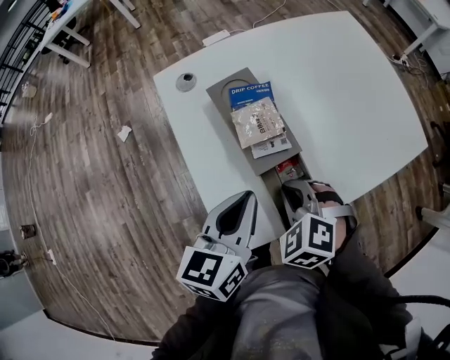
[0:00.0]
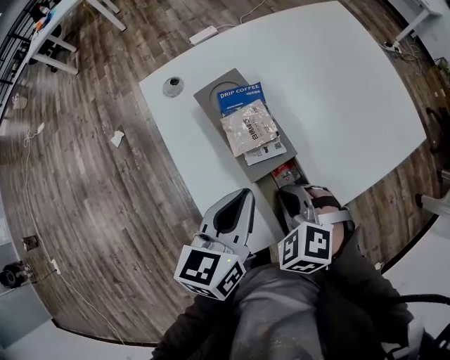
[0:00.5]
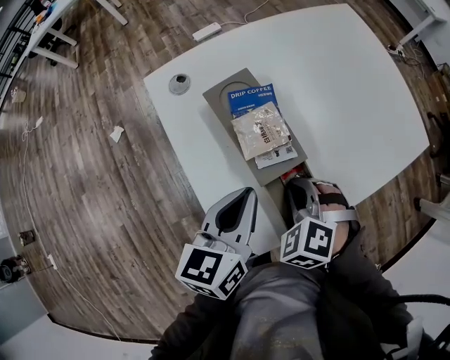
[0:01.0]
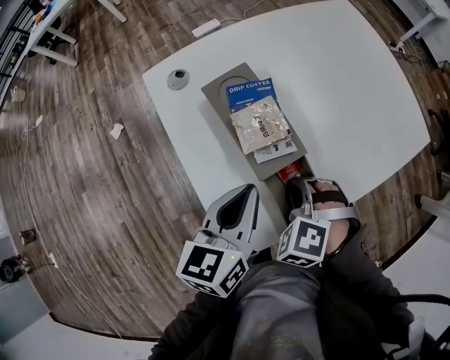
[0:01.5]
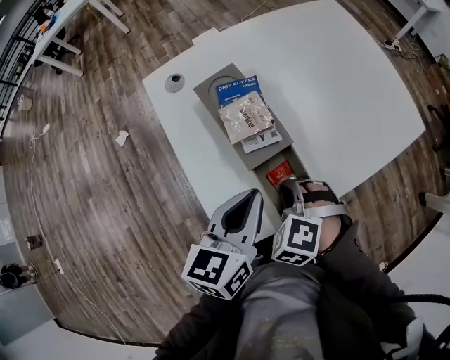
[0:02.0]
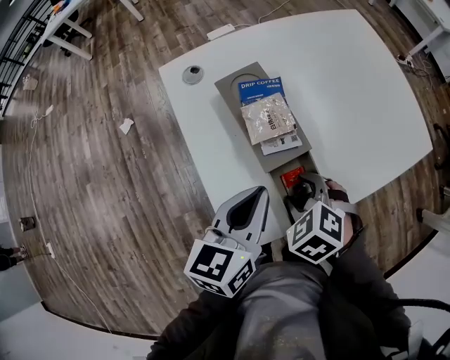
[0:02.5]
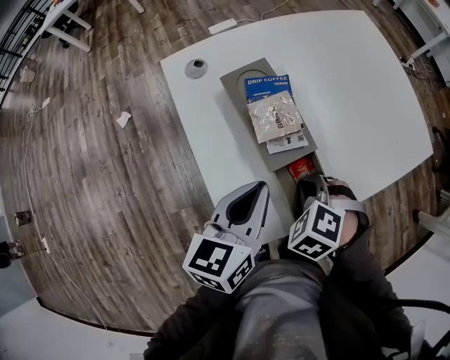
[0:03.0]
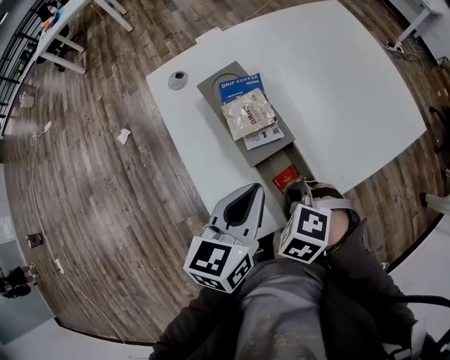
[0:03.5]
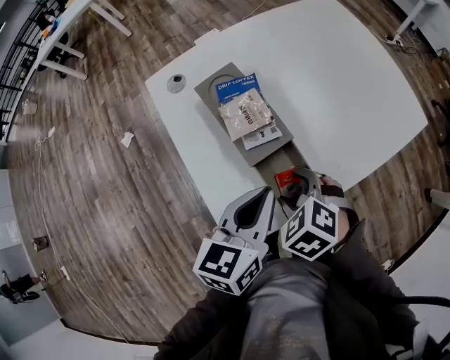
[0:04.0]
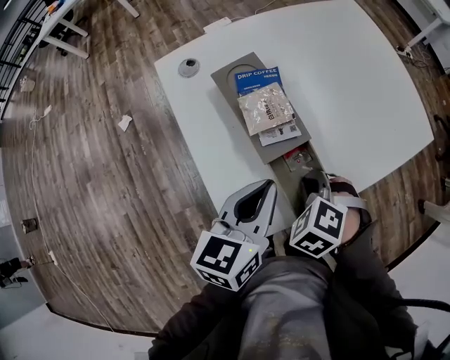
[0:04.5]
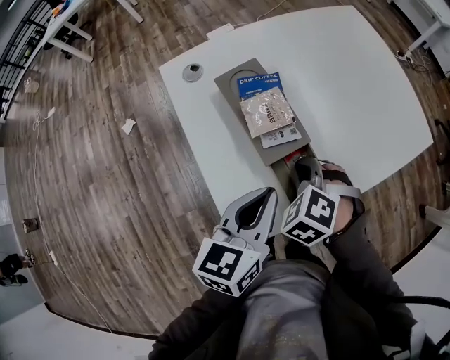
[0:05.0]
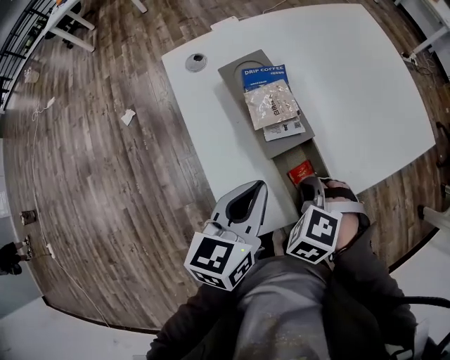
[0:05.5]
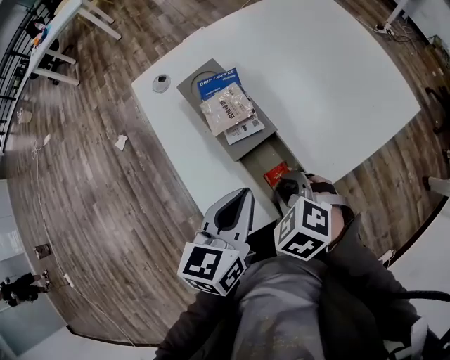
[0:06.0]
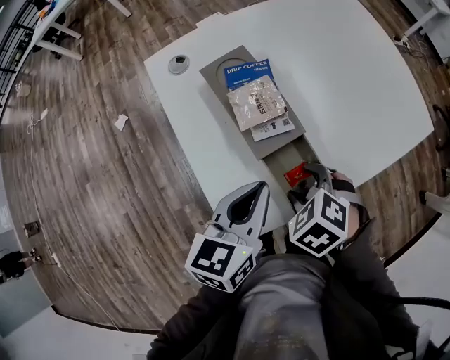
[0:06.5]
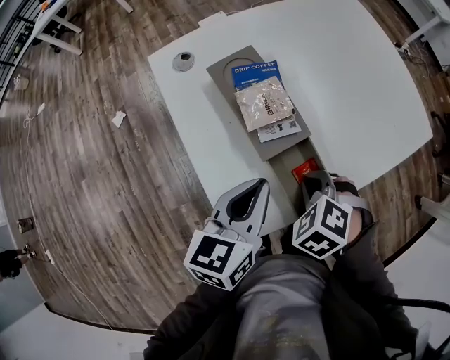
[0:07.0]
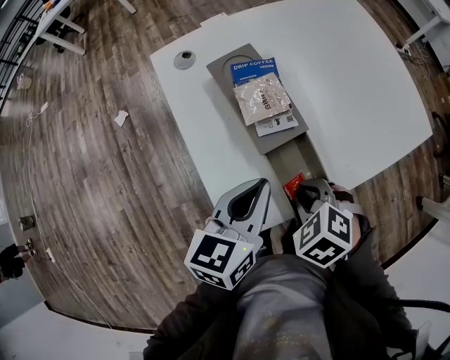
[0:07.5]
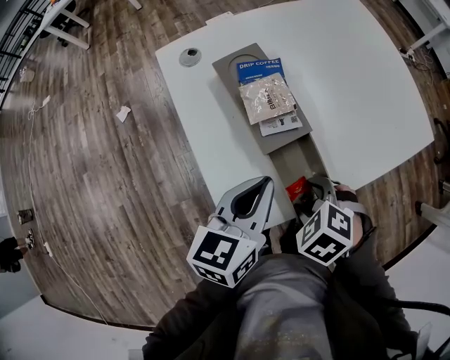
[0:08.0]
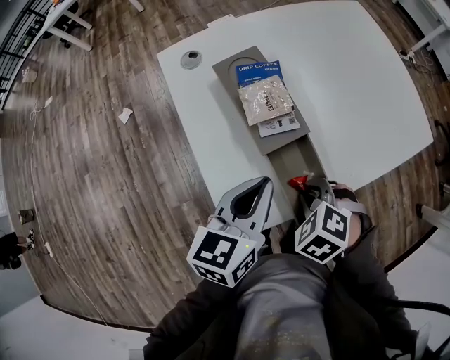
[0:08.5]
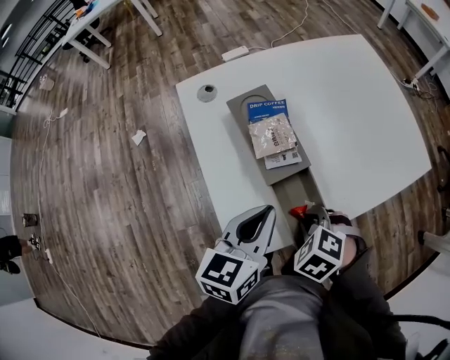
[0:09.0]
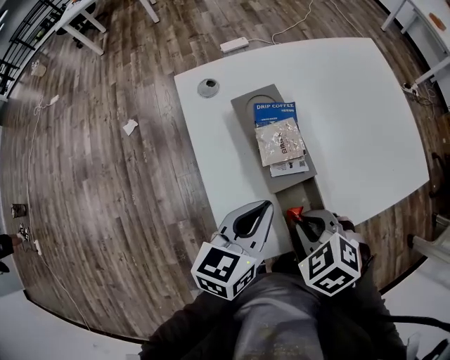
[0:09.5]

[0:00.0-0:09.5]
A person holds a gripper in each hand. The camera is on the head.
0:00.0 to 0:02.0: There are only small adjustments of the grippers.
0:02.0 to 0:04.0: The right gripper changes its angle by about 20 degrees, and opens up.
0:04.0 to 0:05.5: The left gripper is displaced to the left by some 5 cm. The right gripper rotates approximately 20 degrees, and closes up.
0:05.5 to 0:07.5: The right gripper opens, then closes again.
0:07.5 to 0:09.5: The right gripper changes place by some 5 cm, and opens, then closes again.

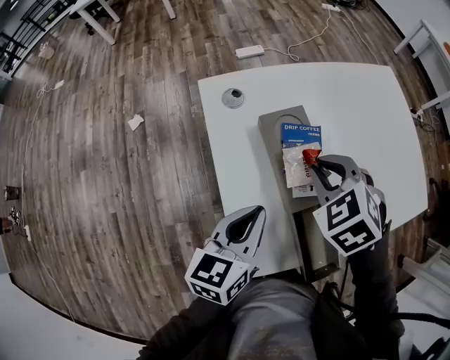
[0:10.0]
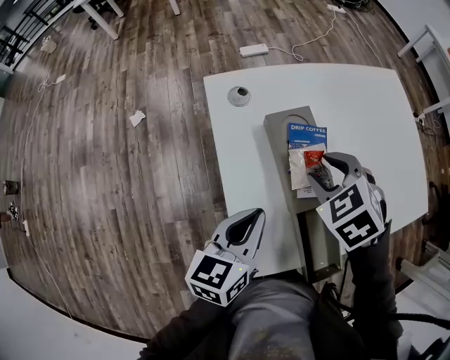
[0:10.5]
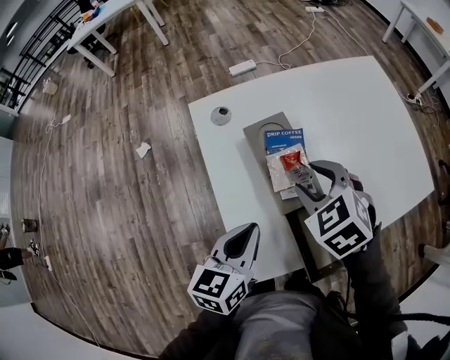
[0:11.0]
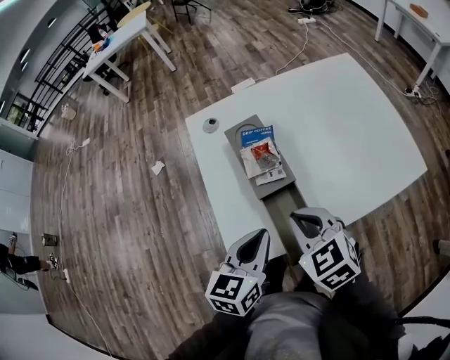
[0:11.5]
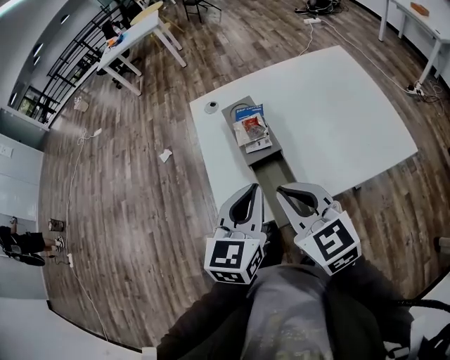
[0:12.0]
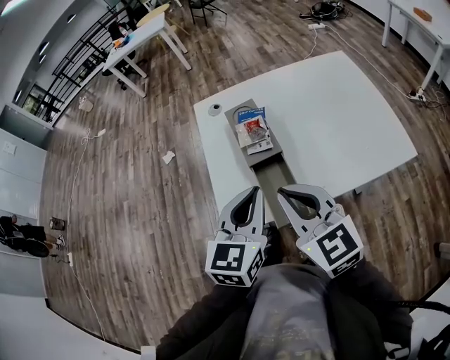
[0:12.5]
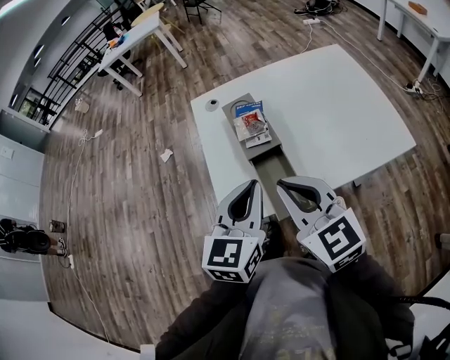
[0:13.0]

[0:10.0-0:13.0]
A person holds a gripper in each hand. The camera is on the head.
0:10.0 to 0:11.5: The left gripper shifts approximately 15 cm backward and to the right. Meanwhile the right gripper shifts approximately 15 cm backward, turns by approximately 30 degrees, and opens and closes again.
0:11.5 to 0:13.0: The left gripper shifts roughly 10 cm upward, and swivels about 20 degrees. The right gripper goes some 15 cm upward and backward, and rotates roughly 30 degrees.

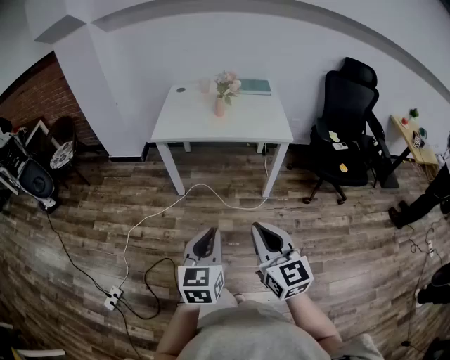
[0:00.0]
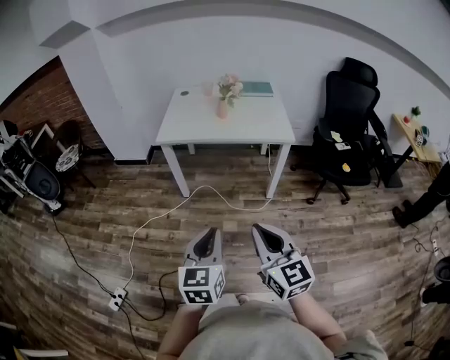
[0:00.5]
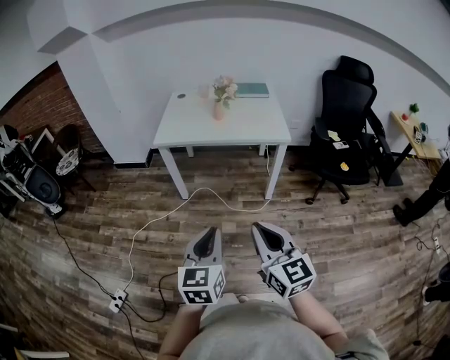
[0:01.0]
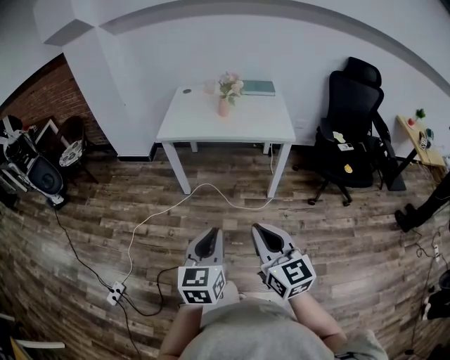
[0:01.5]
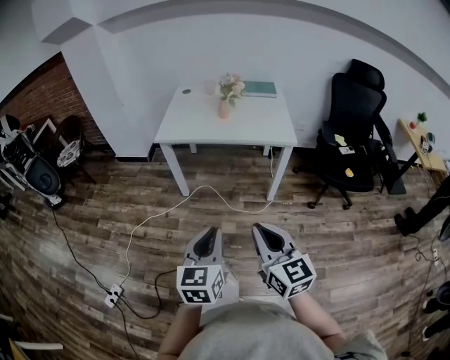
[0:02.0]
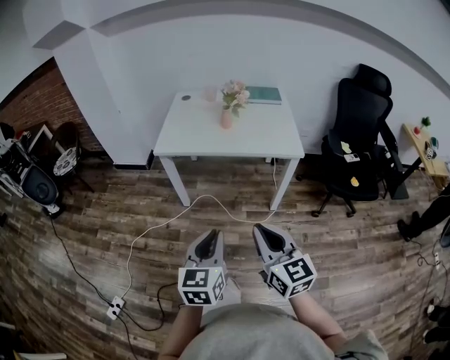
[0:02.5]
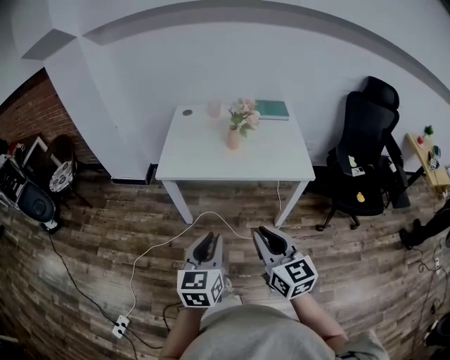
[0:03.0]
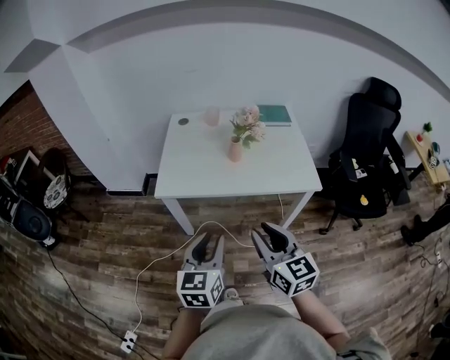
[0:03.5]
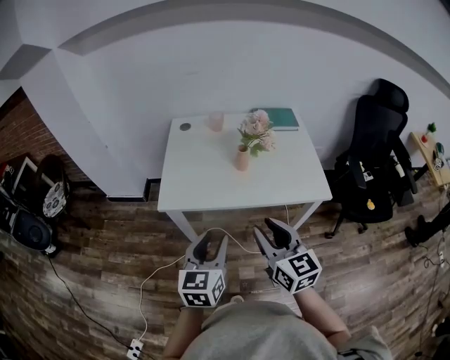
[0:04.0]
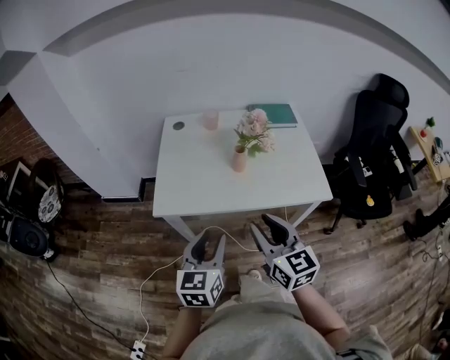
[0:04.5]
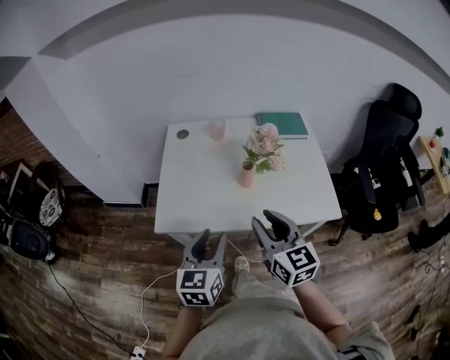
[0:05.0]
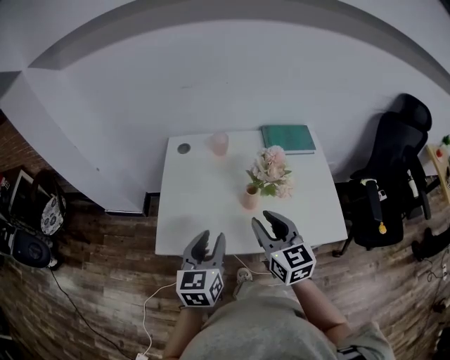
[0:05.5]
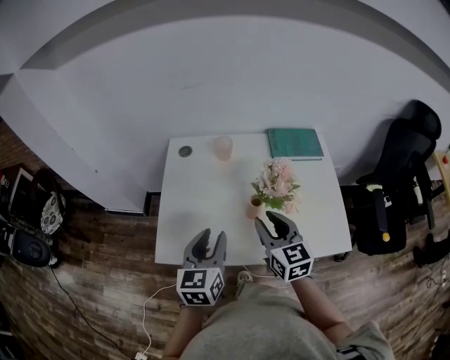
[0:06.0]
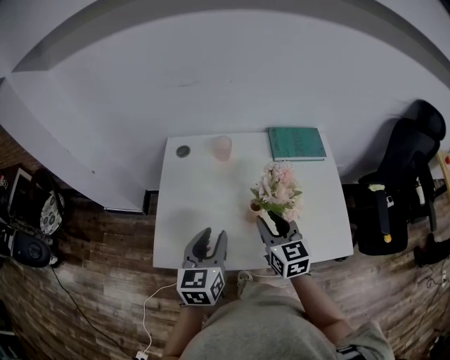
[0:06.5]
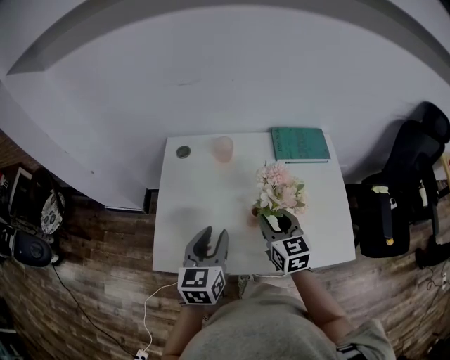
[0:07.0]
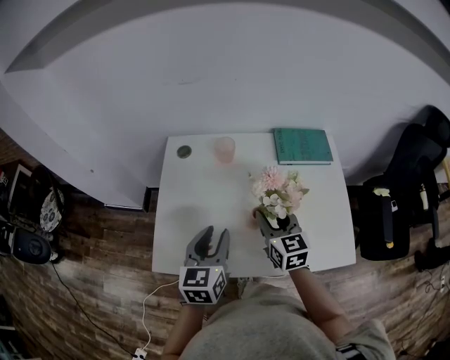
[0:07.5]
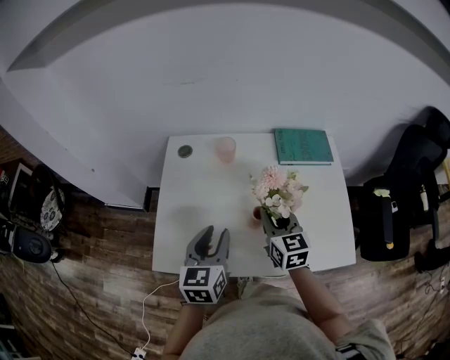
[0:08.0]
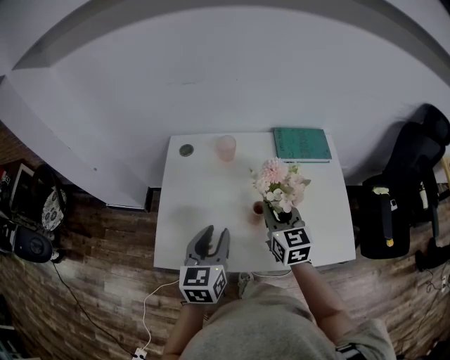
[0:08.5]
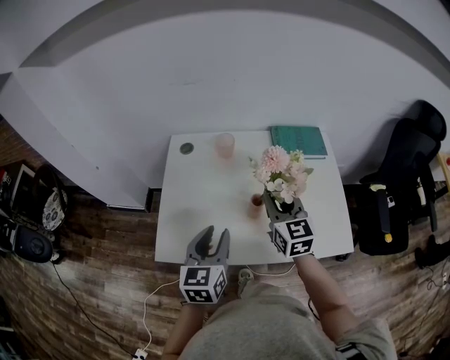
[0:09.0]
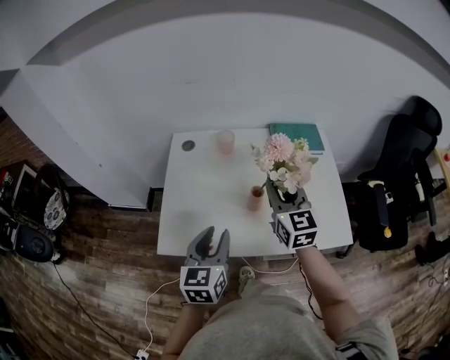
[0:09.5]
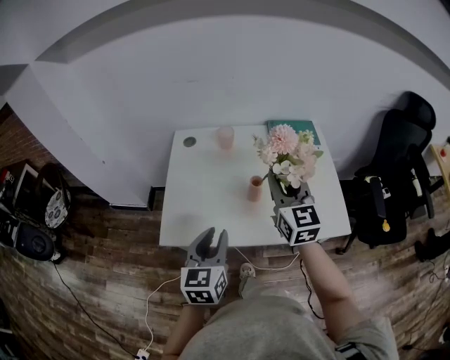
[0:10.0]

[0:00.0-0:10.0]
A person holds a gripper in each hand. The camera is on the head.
0:00.0 to 0:02.0: The grippers stay close to where they were, moving slightly.
0:02.0 to 0:04.0: Both grippers are carried forward, some 40 cm. The right gripper opens its fingers, while the left gripper opens its fingers.
0:04.0 to 0:06.0: Both grippers travel together forward, roughly 30 cm.
0:06.0 to 0:08.0: The grippers both shift forward by some 5 cm.
0:08.0 to 0:10.0: The right gripper shifts roughly 15 cm upward and backward, while the left gripper shifts some 15 cm backward.

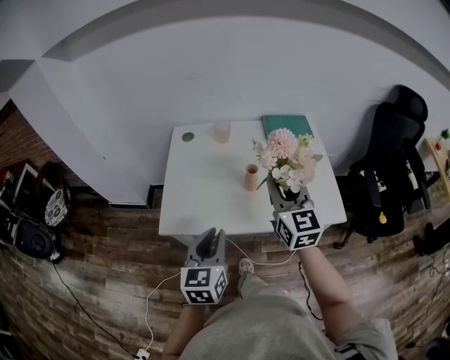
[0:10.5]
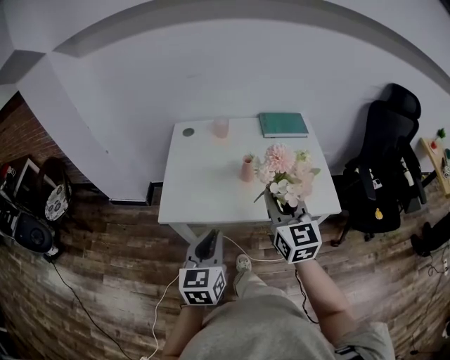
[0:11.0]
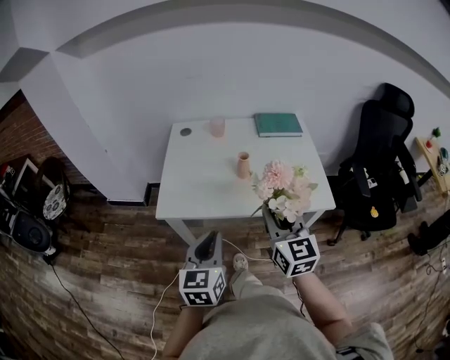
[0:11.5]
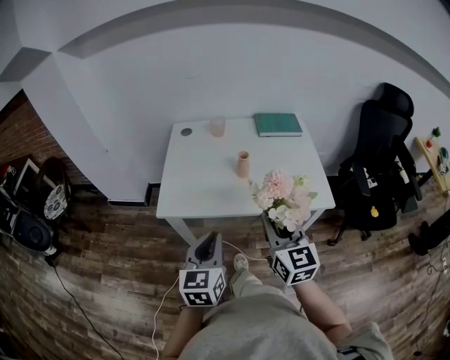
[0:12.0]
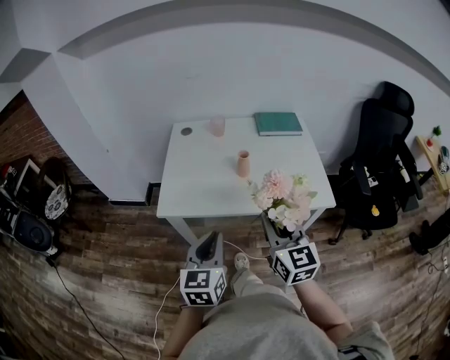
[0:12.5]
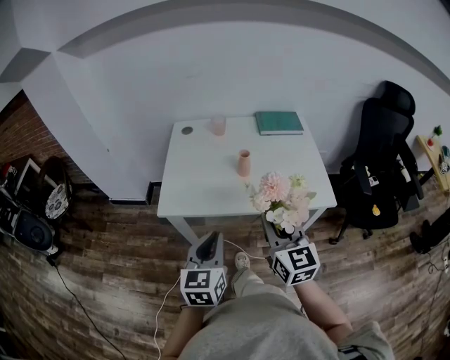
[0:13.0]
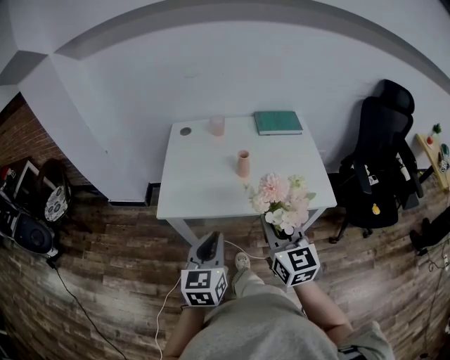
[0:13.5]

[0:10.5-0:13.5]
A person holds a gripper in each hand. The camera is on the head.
0:10.5 to 0:12.0: The left gripper goes some 10 cm backward. Meanwhile the right gripper shifts roughly 20 cm backward.
0:12.0 to 0:13.5: Neither gripper changes place.

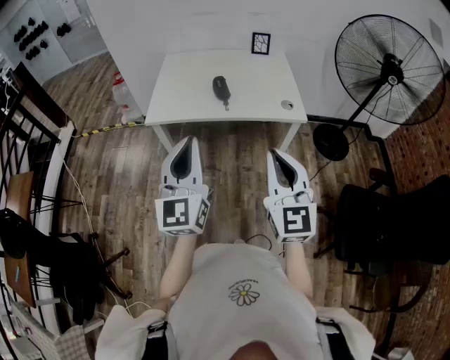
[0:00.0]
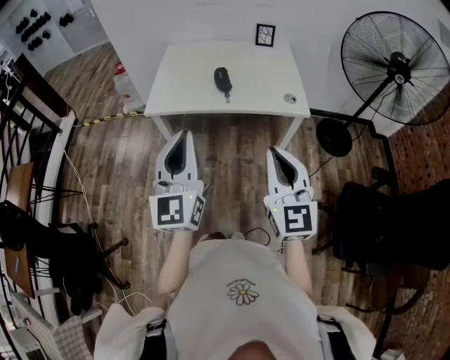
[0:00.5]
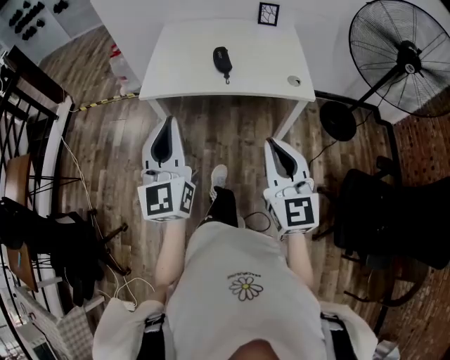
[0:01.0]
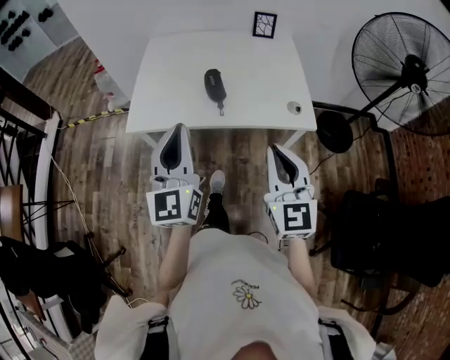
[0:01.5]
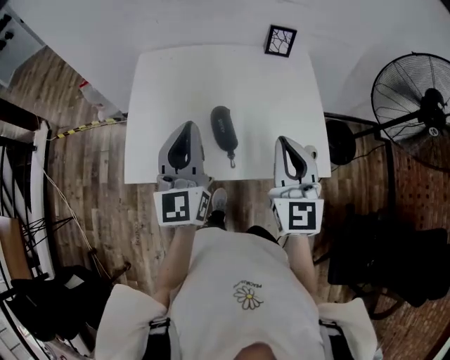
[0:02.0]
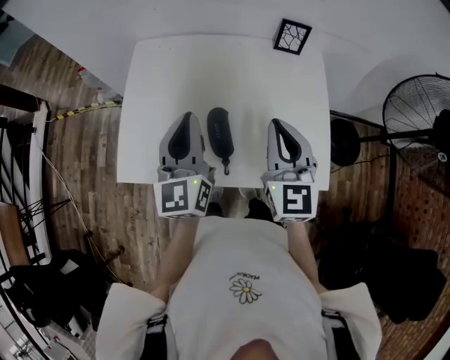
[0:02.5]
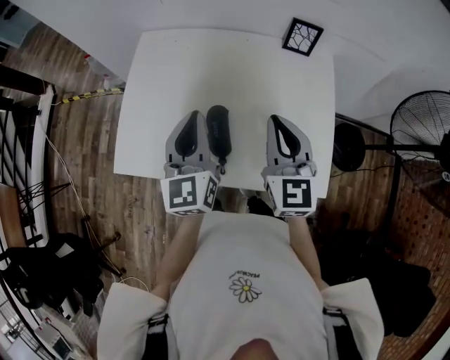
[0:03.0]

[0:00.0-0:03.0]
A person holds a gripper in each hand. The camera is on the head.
0:00.0 to 0:01.5: The two grippers go about 20 cm forward.
0:01.5 to 0:03.0: The two grippers go approximately 35 cm forward.
